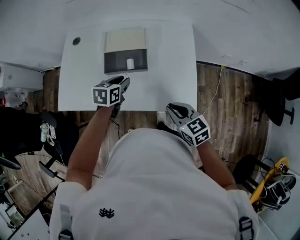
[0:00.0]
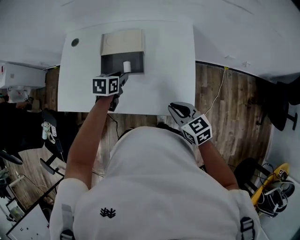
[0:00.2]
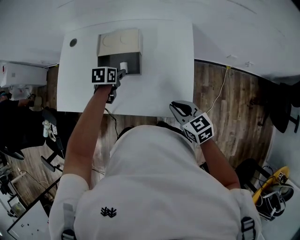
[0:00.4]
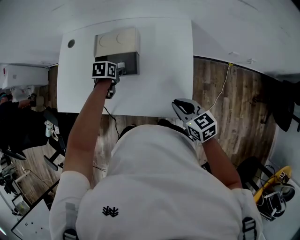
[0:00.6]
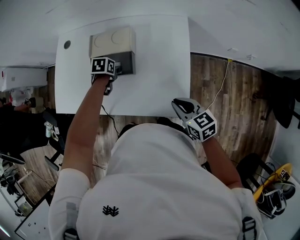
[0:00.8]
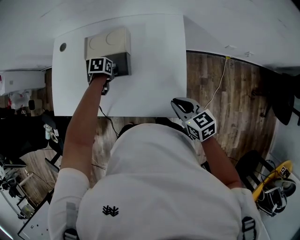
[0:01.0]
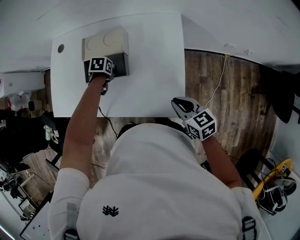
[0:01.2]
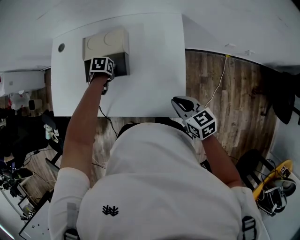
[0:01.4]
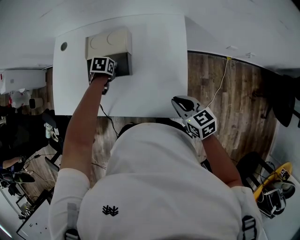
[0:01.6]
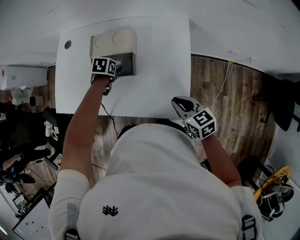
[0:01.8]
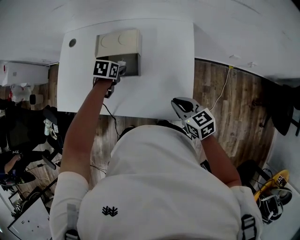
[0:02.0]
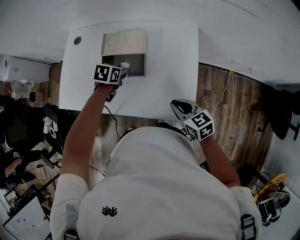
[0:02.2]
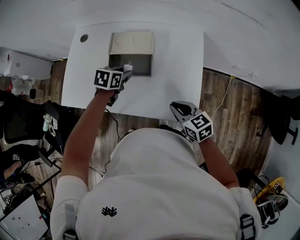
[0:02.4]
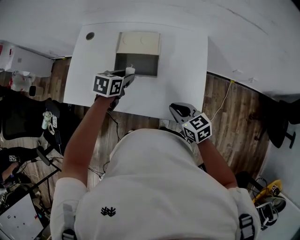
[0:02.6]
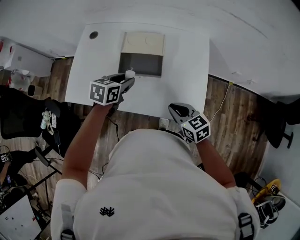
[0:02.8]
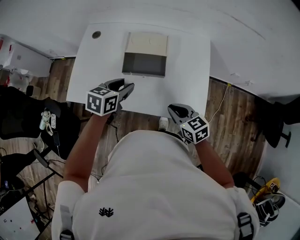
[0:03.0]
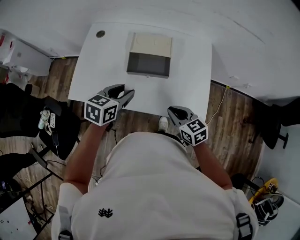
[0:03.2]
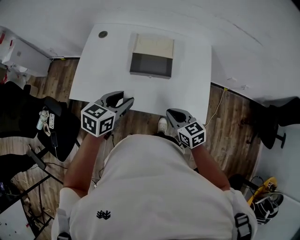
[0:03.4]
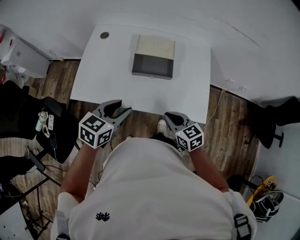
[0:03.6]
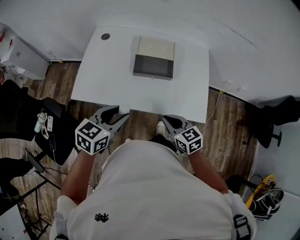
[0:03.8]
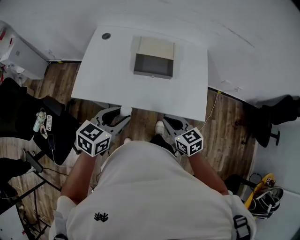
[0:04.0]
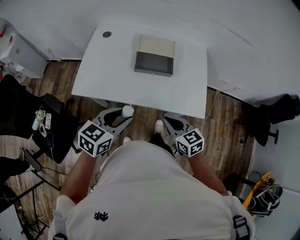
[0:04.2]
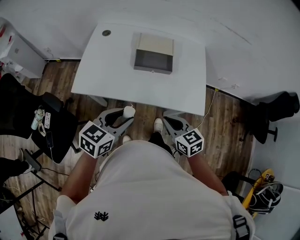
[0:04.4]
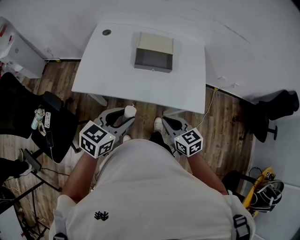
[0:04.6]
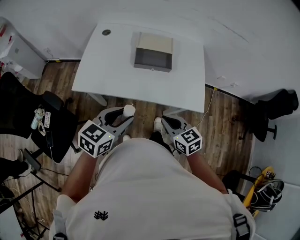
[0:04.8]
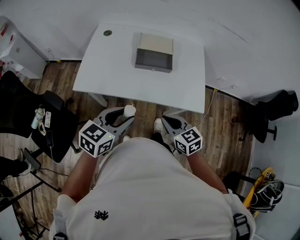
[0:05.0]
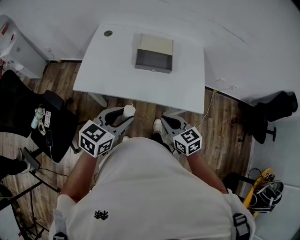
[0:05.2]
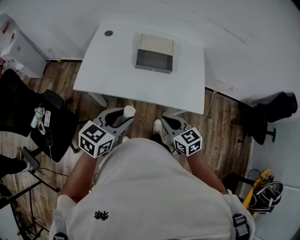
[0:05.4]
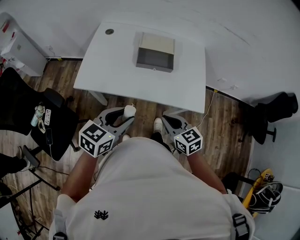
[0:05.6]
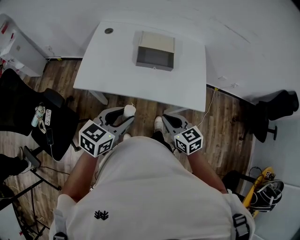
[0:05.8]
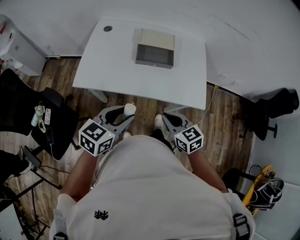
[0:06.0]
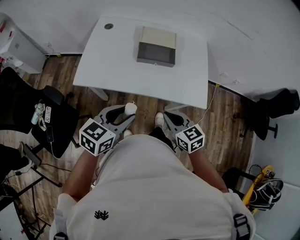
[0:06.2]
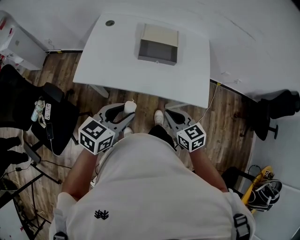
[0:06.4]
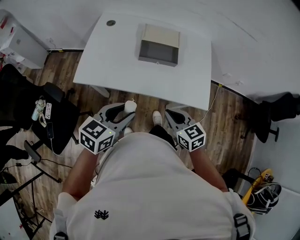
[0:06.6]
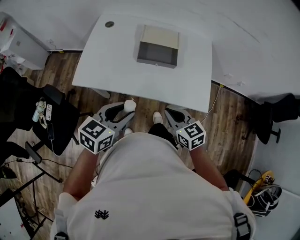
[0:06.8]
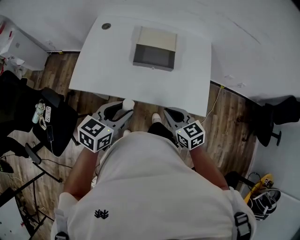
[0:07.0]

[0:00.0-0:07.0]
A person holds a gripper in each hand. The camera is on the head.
0:00.0 to 0:01.4: The right gripper shifts by about 10 cm. Meanwhile the left gripper travels downward by roughly 10 cm, and tilts its fingers about 40 degrees downward.
0:01.4 to 0:02.8: The right gripper shifts by some 15 cm; the left gripper travels upward by roughly 15 cm, and tilts its fingers roughly 40 degrees upward.
0:02.8 to 0:04.2: The right gripper moves to the left and backward, some 15 cm. Meanwhile the left gripper goes approximately 25 cm backward and to the left.
0:04.2 to 0:05.6: The grippers stay close to where they were, moving slightly.
0:05.6 to 0:07.0: Both grippers move forward, about 5 cm.

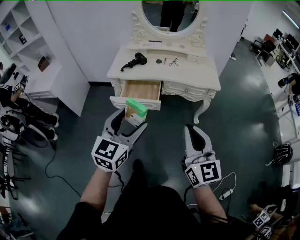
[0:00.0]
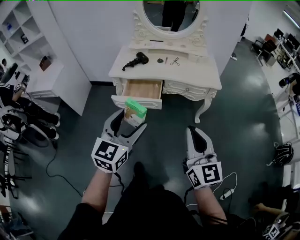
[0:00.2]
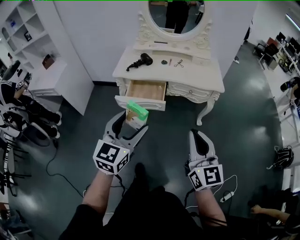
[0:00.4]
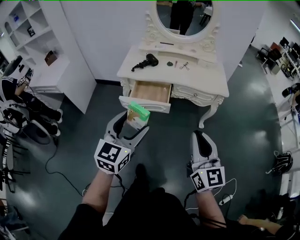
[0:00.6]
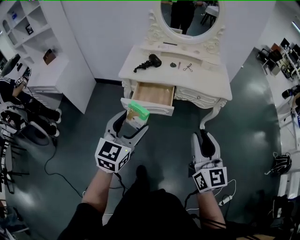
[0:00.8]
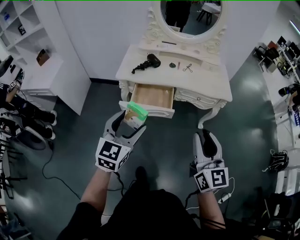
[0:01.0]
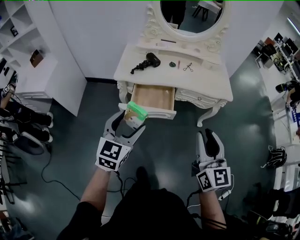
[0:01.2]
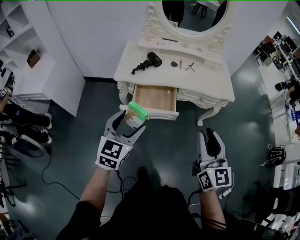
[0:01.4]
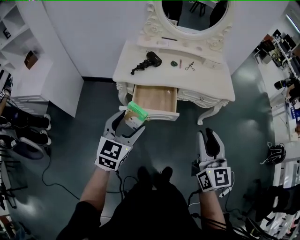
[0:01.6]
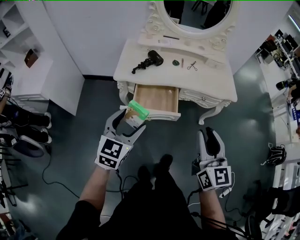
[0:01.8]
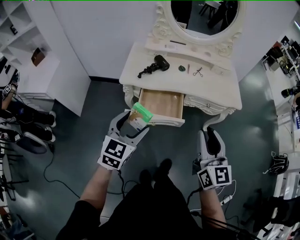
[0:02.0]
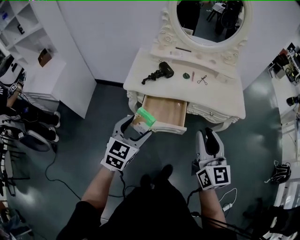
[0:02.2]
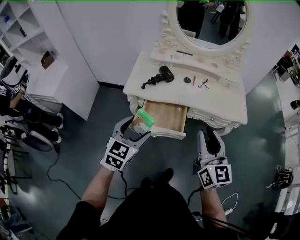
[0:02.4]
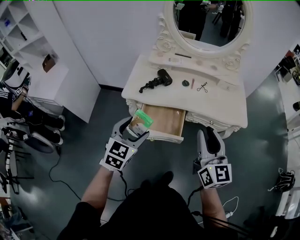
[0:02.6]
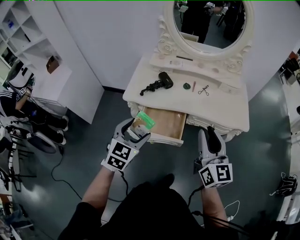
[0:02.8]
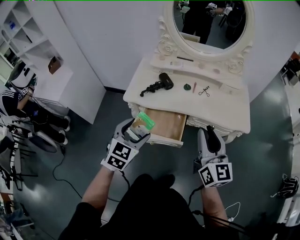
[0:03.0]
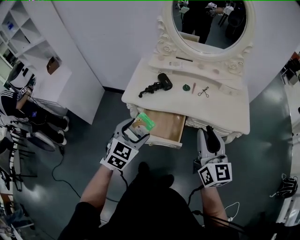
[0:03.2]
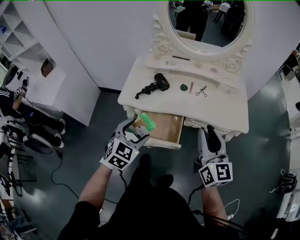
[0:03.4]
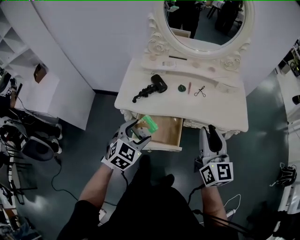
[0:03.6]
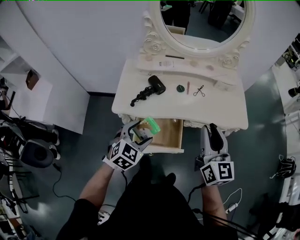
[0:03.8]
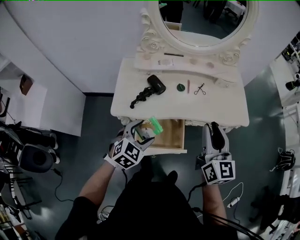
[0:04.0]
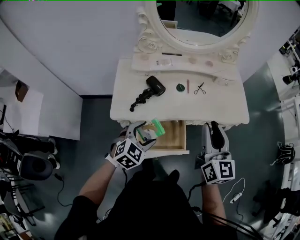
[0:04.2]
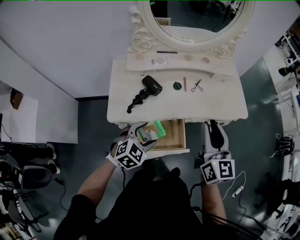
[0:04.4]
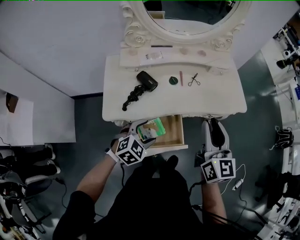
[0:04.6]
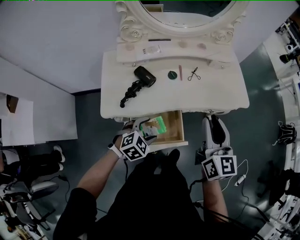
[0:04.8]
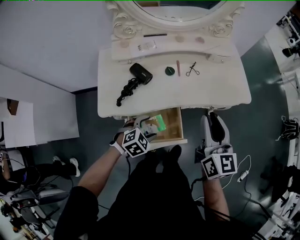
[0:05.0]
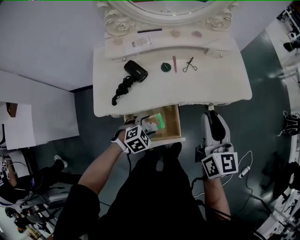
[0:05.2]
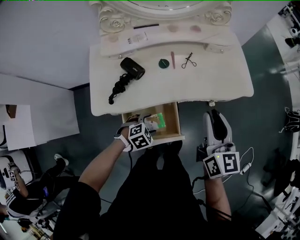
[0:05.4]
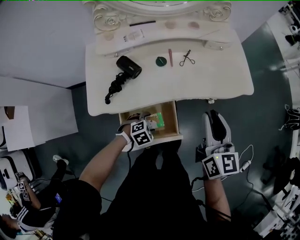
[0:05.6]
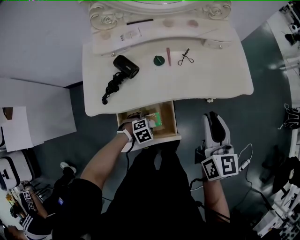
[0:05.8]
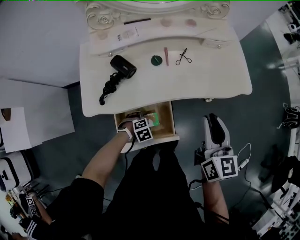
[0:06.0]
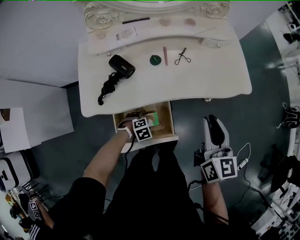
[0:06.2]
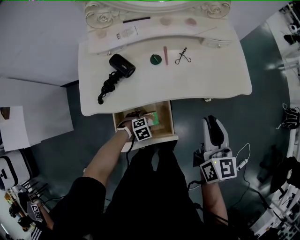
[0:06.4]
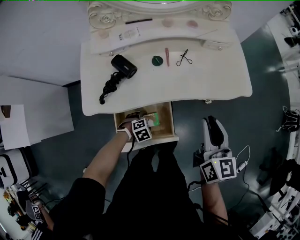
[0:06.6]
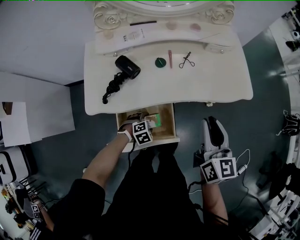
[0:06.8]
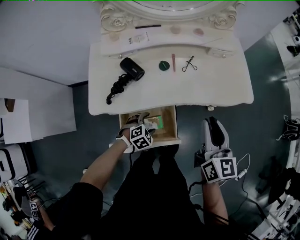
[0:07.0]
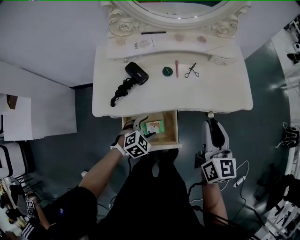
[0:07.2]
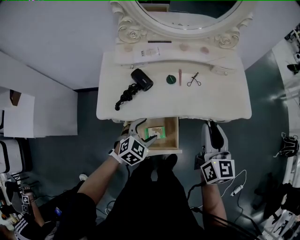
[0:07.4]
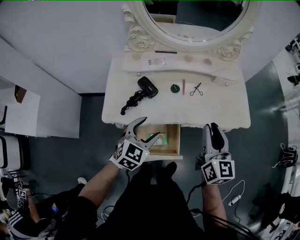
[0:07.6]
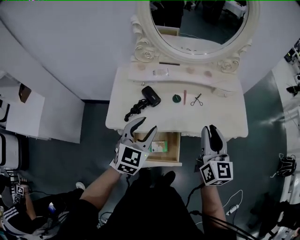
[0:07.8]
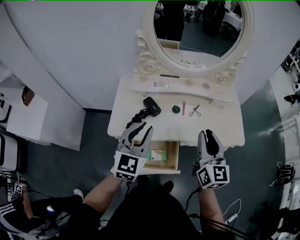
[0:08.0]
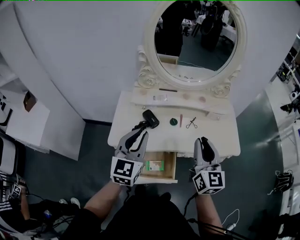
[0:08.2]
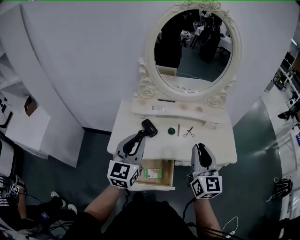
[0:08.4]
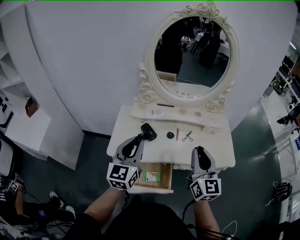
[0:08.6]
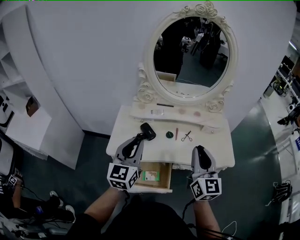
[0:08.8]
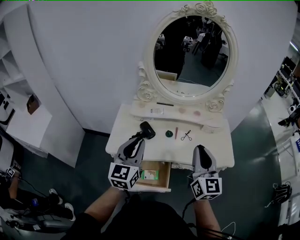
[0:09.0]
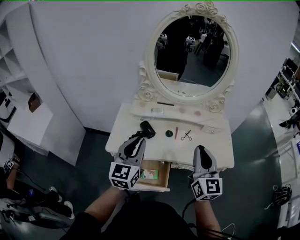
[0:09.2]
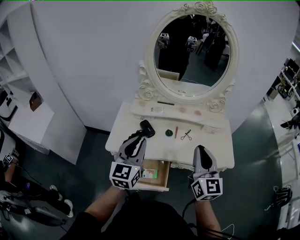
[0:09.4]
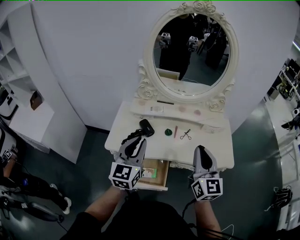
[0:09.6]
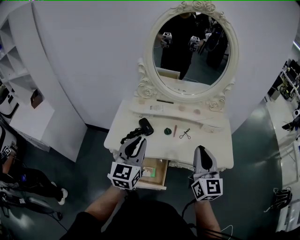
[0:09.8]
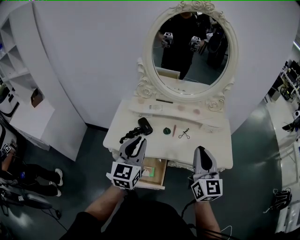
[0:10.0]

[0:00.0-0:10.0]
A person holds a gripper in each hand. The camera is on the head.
0:00.0 to 0:01.4: The left gripper shifts some 25 cm to the left, forward and downward. The right gripper goes roughly 20 cm forward and to the left, and opens.
0:01.4 to 0:02.8: The grippers both shift forward by some 15 cm.
0:02.8 to 0:04.2: The left gripper travels forward and downward by approximately 20 cm, and rotates some 30 degrees. Meanwhile the right gripper travels forward and to the left by approximately 15 cm.
0:04.2 to 0:05.8: The right gripper ends up approximately 15 cm from where it was. The left gripper shifts some 30 cm downward, and points its fingers roughly 30 degrees further downward.
0:05.8 to 0:07.2: The left gripper goes roughly 10 cm upward, and swivels approximately 30 degrees.
0:07.2 to 0:08.6: The right gripper shifts about 15 cm upward, and rotates roughly 20 degrees. Meanwhile the left gripper shifts about 40 cm upward, points its fingers approximately 50 degrees further upward, and closes.
0:08.6 to 0:10.0: The two grippers go about 5 cm to the right.

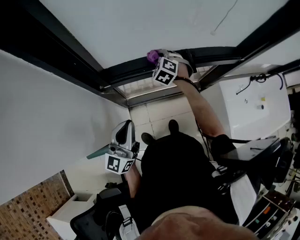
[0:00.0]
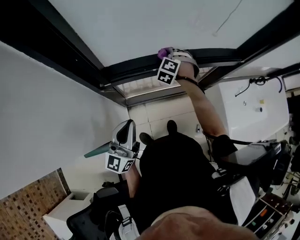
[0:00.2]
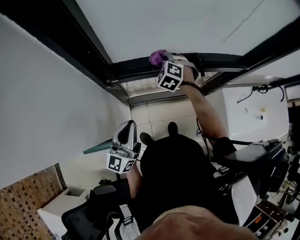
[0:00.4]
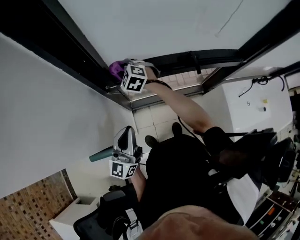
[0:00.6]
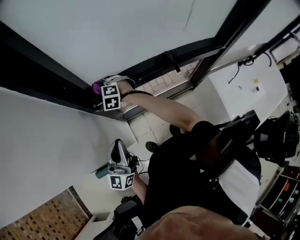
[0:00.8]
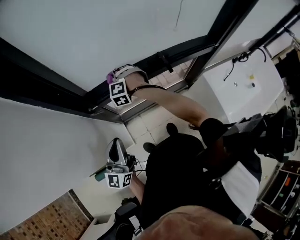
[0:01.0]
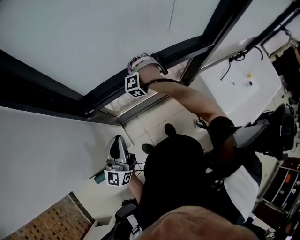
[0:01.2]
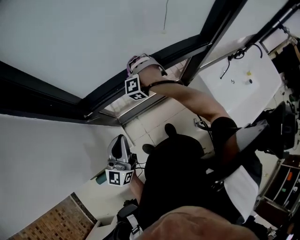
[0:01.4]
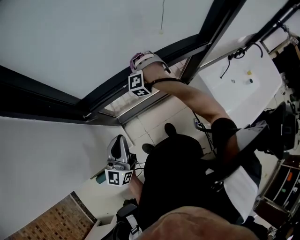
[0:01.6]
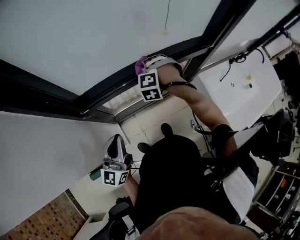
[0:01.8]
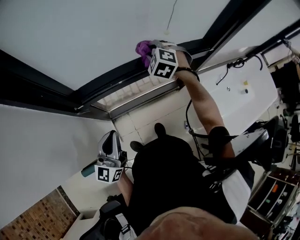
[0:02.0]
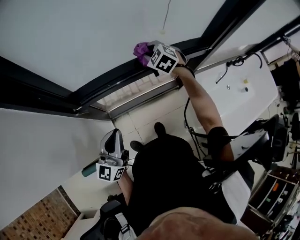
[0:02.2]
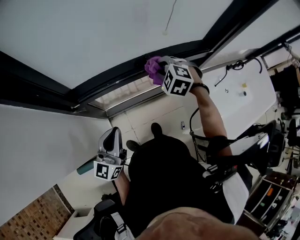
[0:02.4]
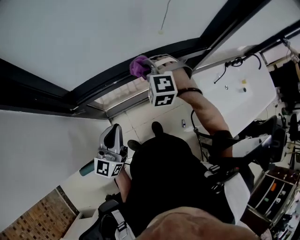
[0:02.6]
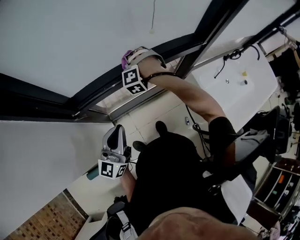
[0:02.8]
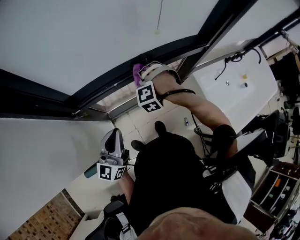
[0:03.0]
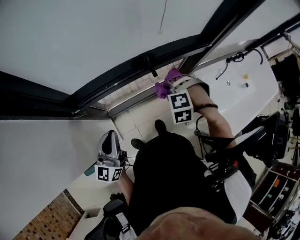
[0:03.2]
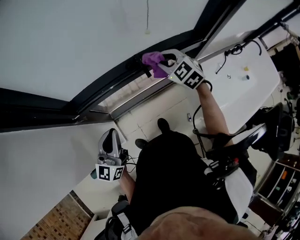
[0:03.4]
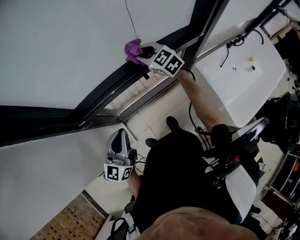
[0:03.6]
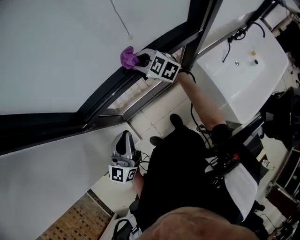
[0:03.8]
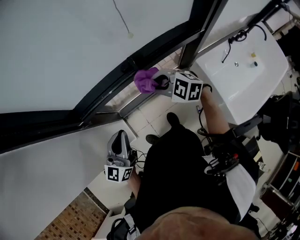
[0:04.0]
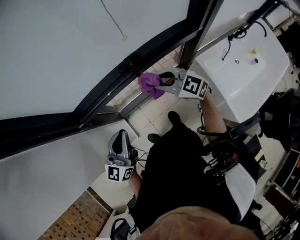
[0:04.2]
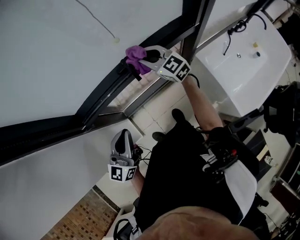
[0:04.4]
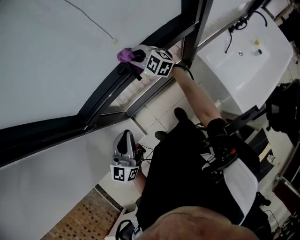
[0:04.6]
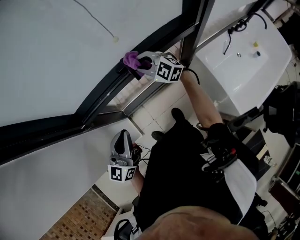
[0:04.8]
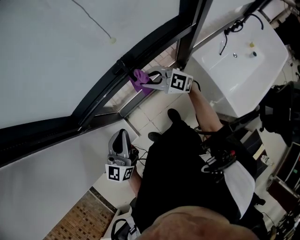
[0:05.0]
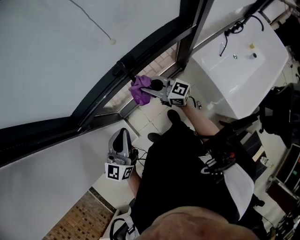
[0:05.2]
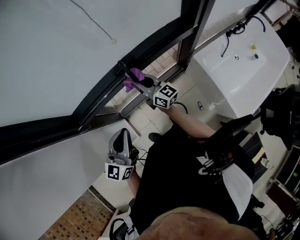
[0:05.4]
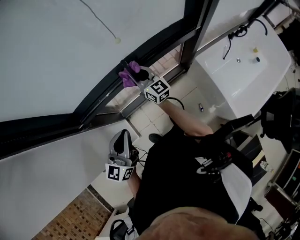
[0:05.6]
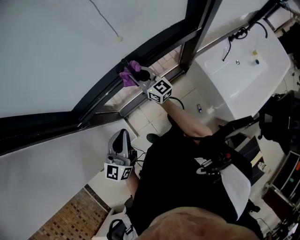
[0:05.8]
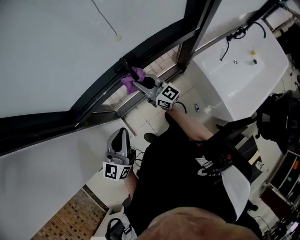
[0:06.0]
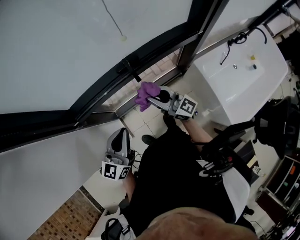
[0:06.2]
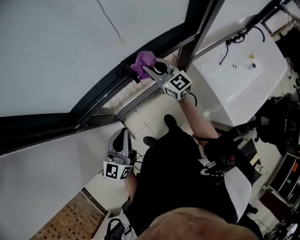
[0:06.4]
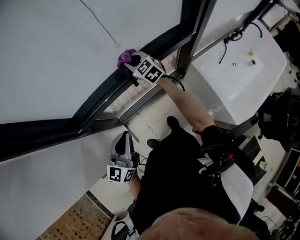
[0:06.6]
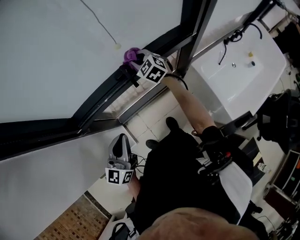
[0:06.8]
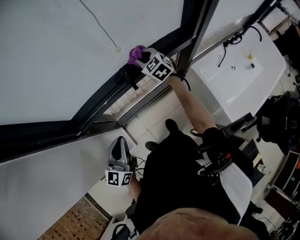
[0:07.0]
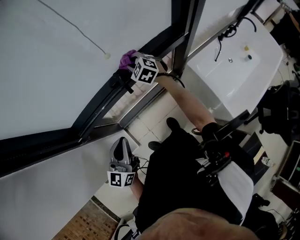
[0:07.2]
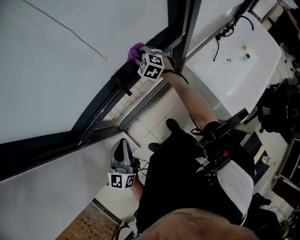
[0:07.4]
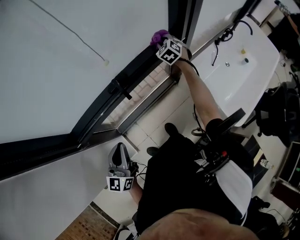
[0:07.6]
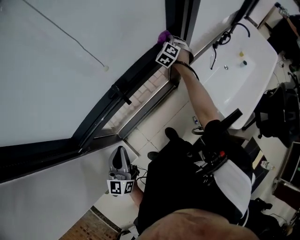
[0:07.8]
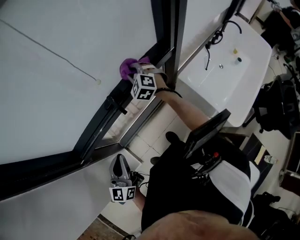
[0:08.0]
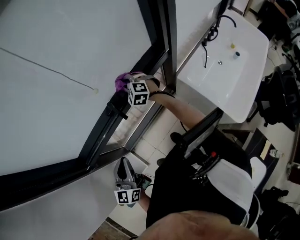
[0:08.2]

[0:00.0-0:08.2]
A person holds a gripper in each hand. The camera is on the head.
0:00.0 to 0:01.6: The right gripper rotates roughly 50 degrees.
0:01.6 to 0:03.2: The right gripper swings forward and backward, about 20 cm each way, with 4 reversals, and turns by approximately 30 degrees.
0:03.2 to 0:05.0: The right gripper moves forward and backward over approximately 20 cm, changing direction 3 times, and tilts its fingers approximately 60 degrees upward, while the left gripper heads to the right, covering approximately 10 cm.
0:05.0 to 0:06.6: The right gripper goes forward and backward, about 20 cm each way, reversing 2 times, and changes its angle by roughly 40 degrees.
0:06.6 to 0:08.2: The right gripper turns by some 30 degrees.
